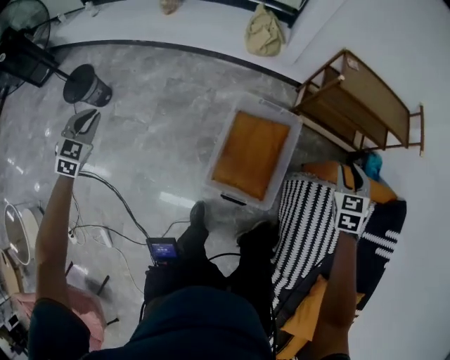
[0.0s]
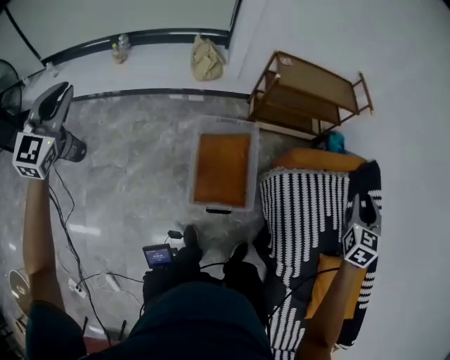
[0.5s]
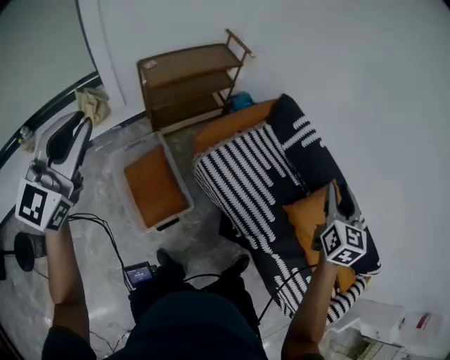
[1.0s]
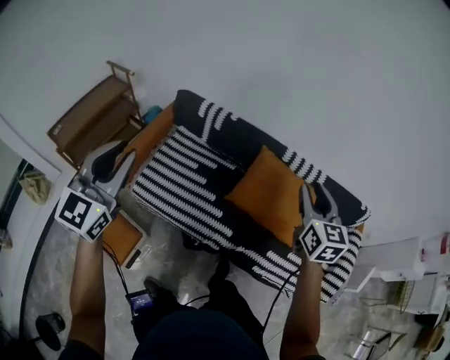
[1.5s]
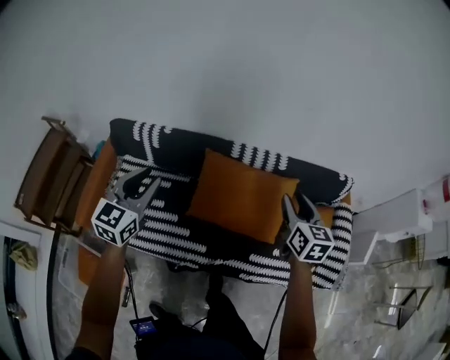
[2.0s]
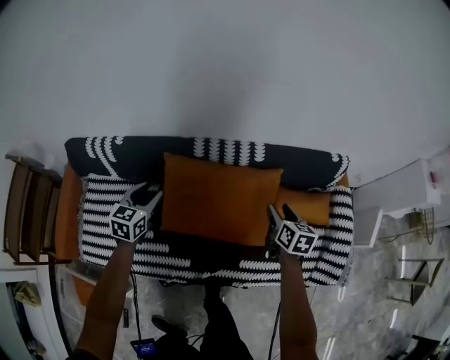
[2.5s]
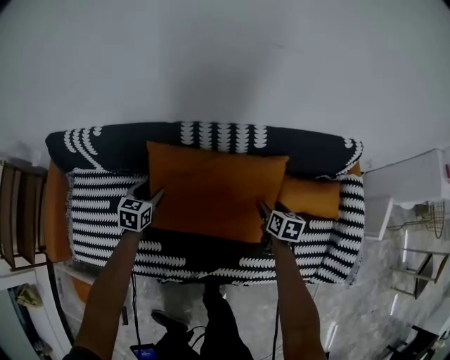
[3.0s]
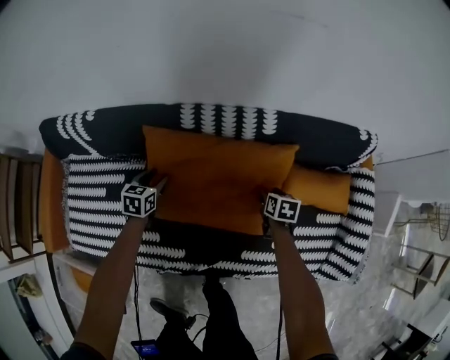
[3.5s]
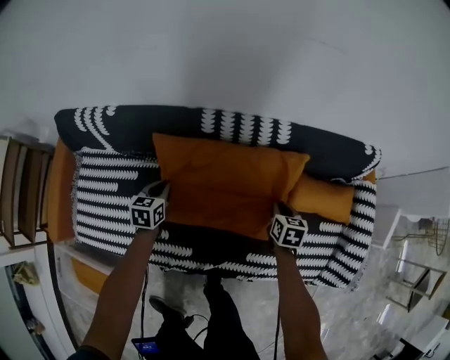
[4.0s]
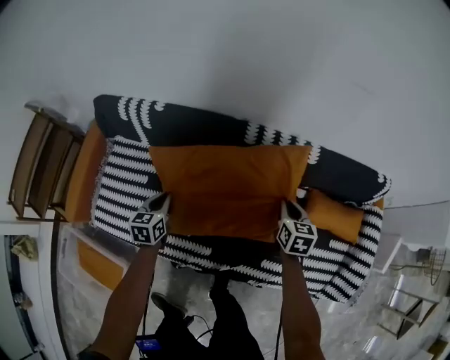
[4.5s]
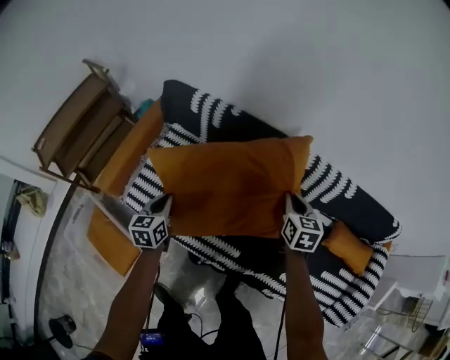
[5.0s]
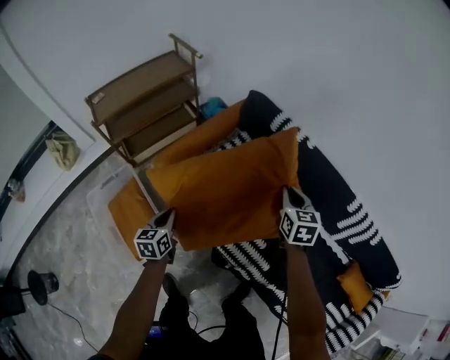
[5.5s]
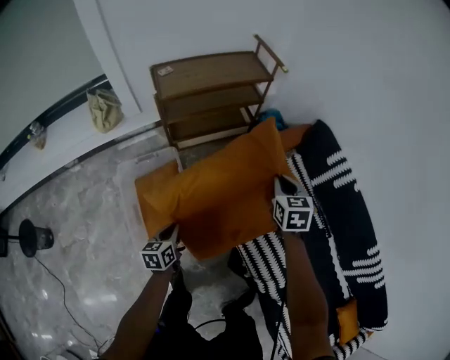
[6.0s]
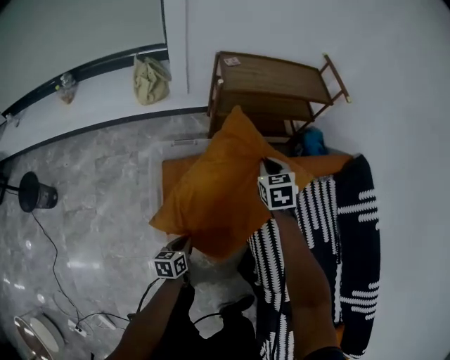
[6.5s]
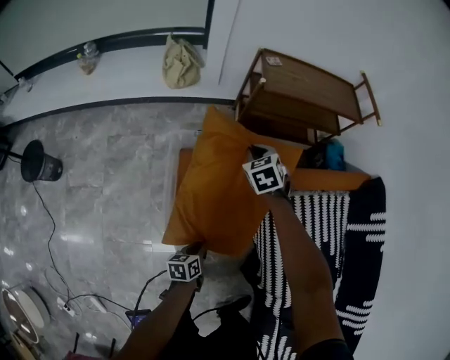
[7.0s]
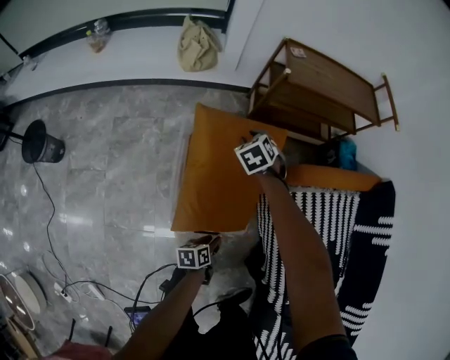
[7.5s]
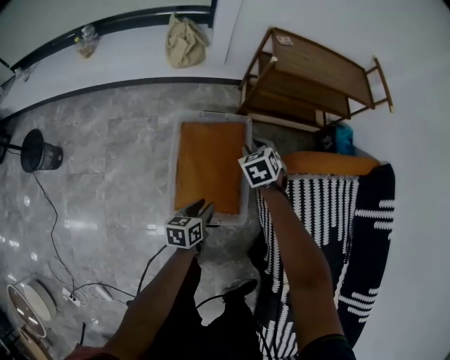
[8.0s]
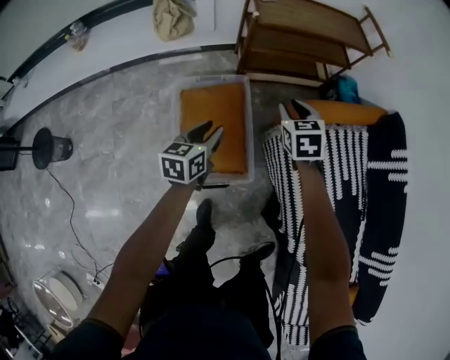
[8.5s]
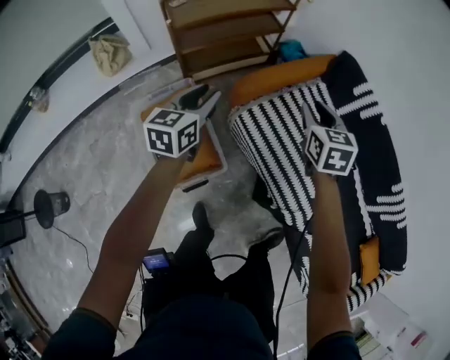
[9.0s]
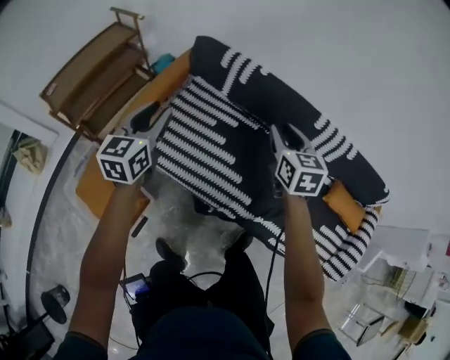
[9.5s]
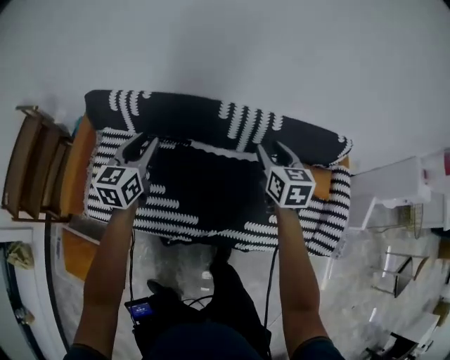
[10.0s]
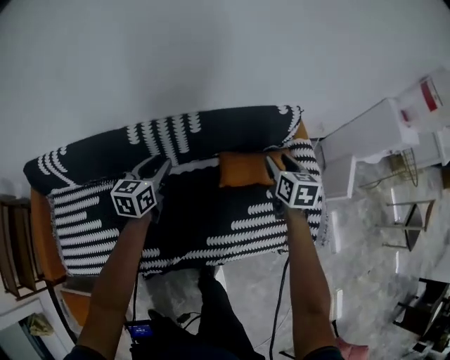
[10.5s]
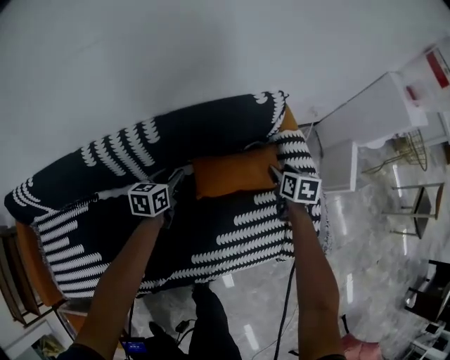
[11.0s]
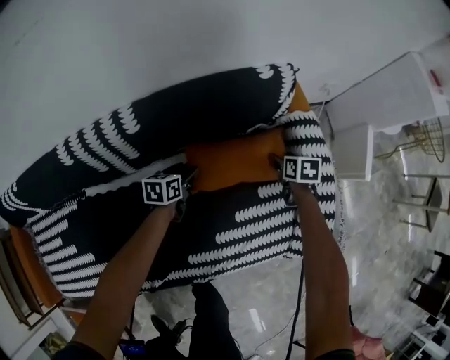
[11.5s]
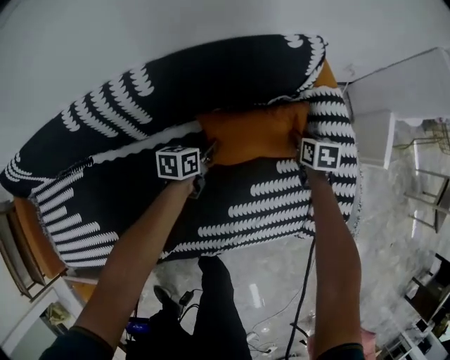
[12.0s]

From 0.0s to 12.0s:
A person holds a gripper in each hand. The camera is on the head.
From 0.0s to 2.0s: The left gripper moves roughly 1.5 m, and rotates roughly 100 degrees. Meanwhile the right gripper moves roughly 1 m, and rotates roughly 100 degrees.
From 2.0s to 4.0s: Both grippers move downward, some 40 cm. The left gripper tilts its fingers some 30 degrees downward, and closes; the right gripper rotates approximately 30 degrees, and closes up.
From 4.0s to 6.0s: Both grippers are carried roughly 90 cm. The right gripper swivels about 70 degrees, while the left gripper changes its angle by some 70 degrees.
From 6.0s to 8.0s: The right gripper goes approximately 50 cm to the left, and rotates approximately 50 degrees; the left gripper heads to the left and downward, covering roughly 20 cm, and opens.
From 8.0s to 10.0s: Both grippers are carried some 1 m. The left gripper turns by roughly 80 degrees. The right gripper swivels about 100 degrees.
From 10.0s to 12.0s: The pair of grippers is taken roughly 60 cm. The left gripper swivels some 50 degrees, and opens, then closes once more. The right gripper turns by about 40 degrees.

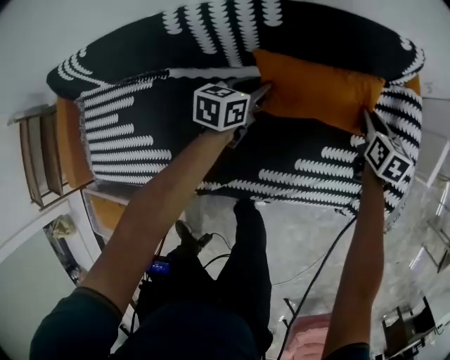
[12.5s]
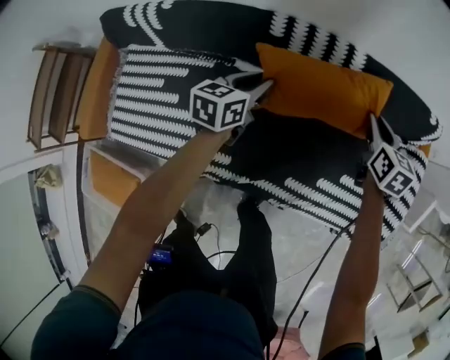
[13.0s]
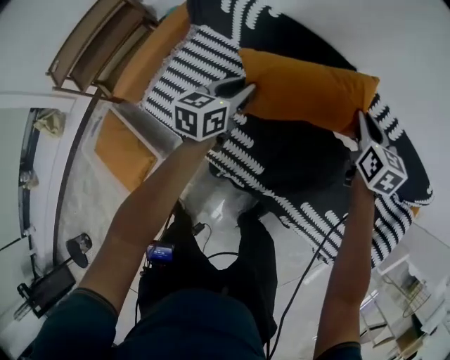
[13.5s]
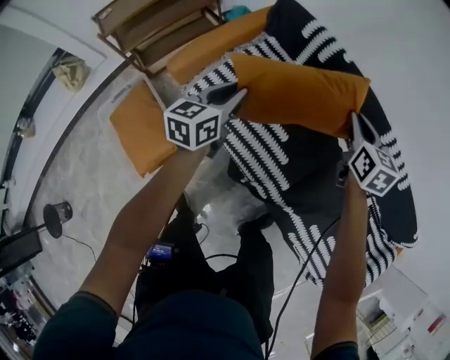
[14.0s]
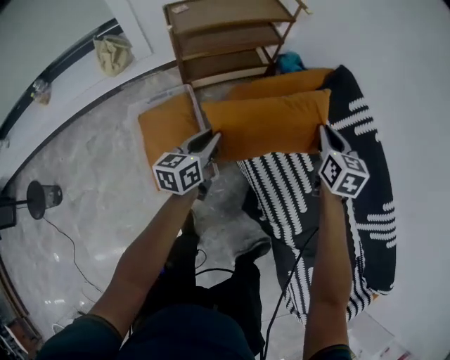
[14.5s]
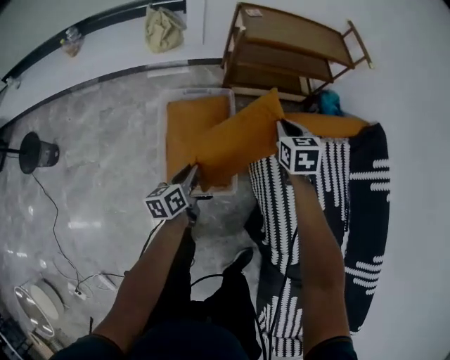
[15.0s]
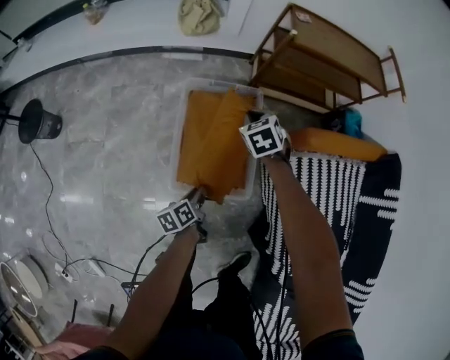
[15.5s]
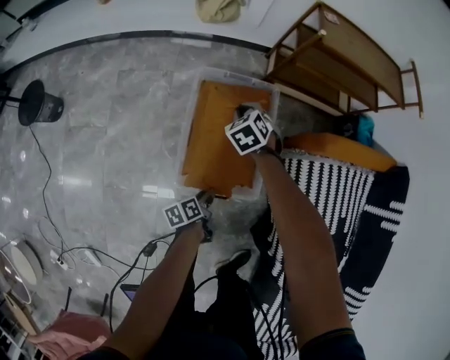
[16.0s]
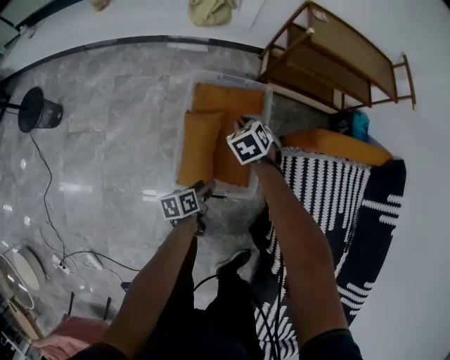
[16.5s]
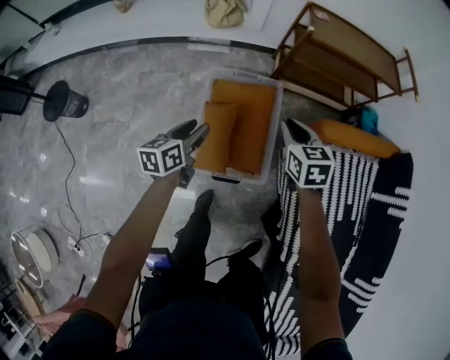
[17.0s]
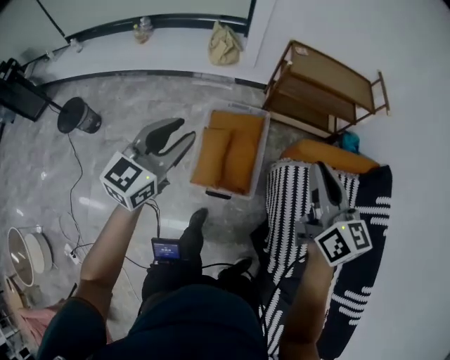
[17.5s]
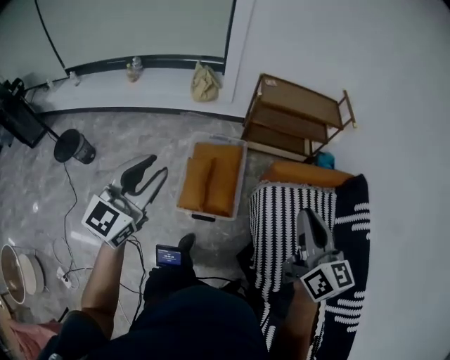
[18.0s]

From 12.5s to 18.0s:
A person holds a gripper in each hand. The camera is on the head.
From 12.5s to 14.5s: The pair of grippers is taken about 1 m. The right gripper changes its angle by about 70 degrees. The left gripper changes its angle by roughly 80 degrees.
From 14.5s to 16.0s: The right gripper moves approximately 70 cm, and rolls counterclockwise, seen from behind, by some 60 degrees; the left gripper travels downward by approximately 30 cm, and rolls counterclockwise, seen from behind, by approximately 60 degrees.
From 16.0s to 18.0s: The right gripper goes some 80 cm upward, backward and to the right, and points its fingers some 50 degrees further upward. Meanwhile the left gripper heads upward, covering approximately 70 cm, and rolls clockwise, seen from behind, by roughly 80 degrees.

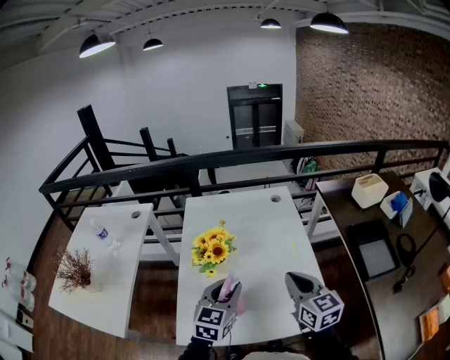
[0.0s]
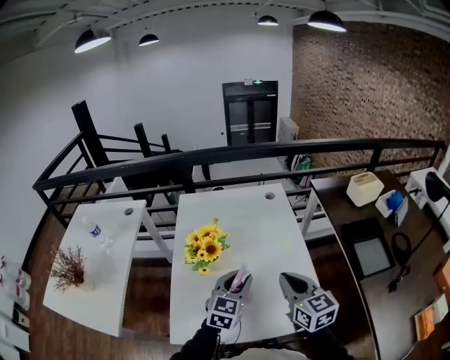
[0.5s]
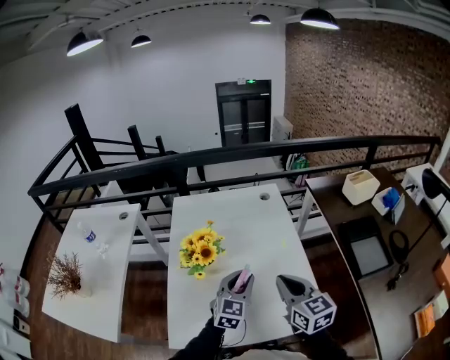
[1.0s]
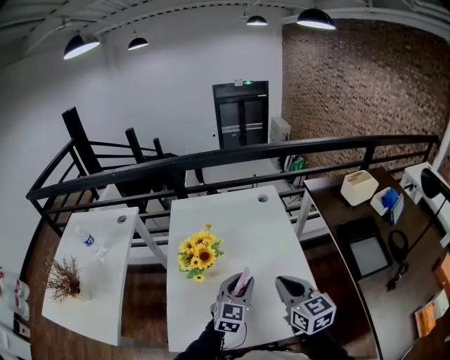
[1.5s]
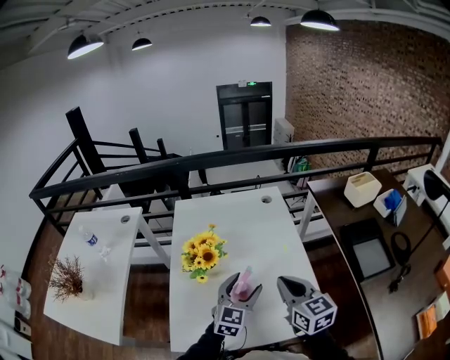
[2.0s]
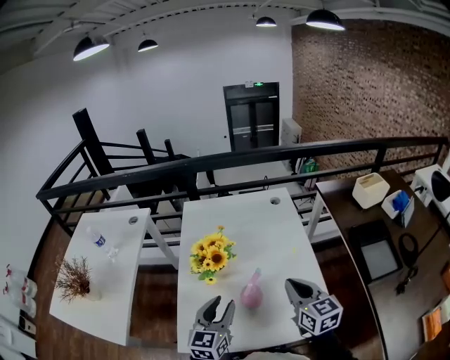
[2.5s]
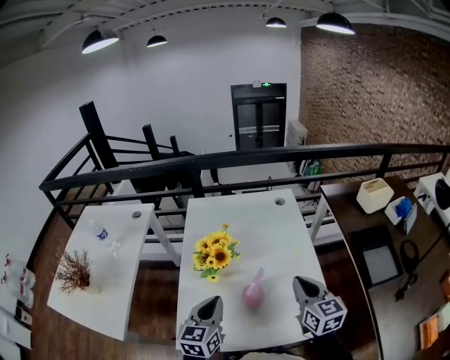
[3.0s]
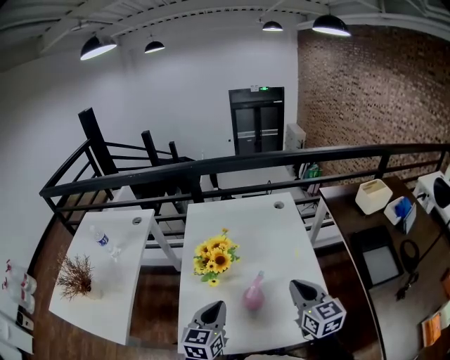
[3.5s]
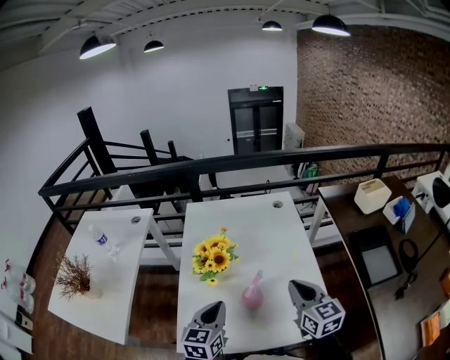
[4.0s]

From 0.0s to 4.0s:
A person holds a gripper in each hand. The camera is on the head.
From 0.0s to 2.0s: The left gripper is displaced to the right by roughly 5 cm, and opens up.
From 2.0s to 4.0s: The left gripper goes some 15 cm to the left and backward, swivels approximately 20 degrees, and closes.

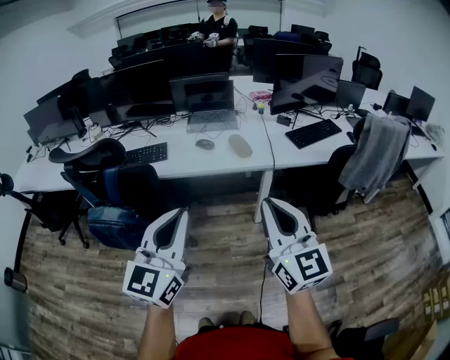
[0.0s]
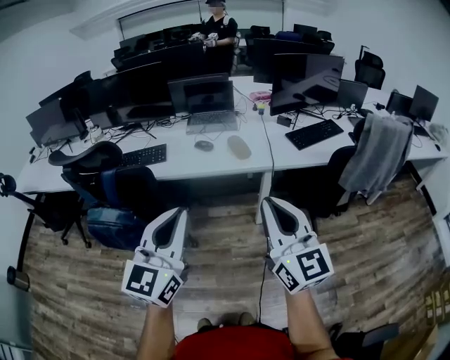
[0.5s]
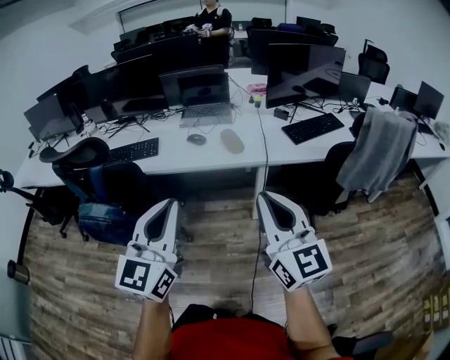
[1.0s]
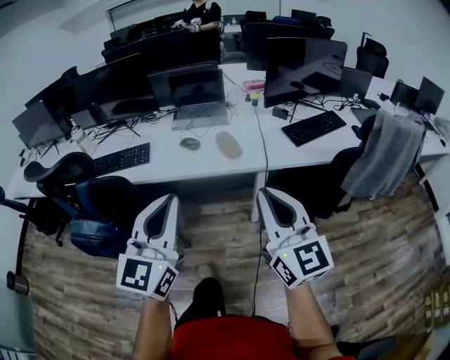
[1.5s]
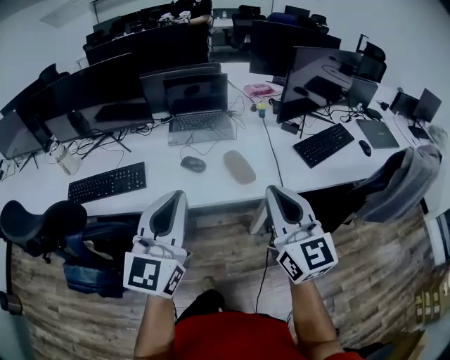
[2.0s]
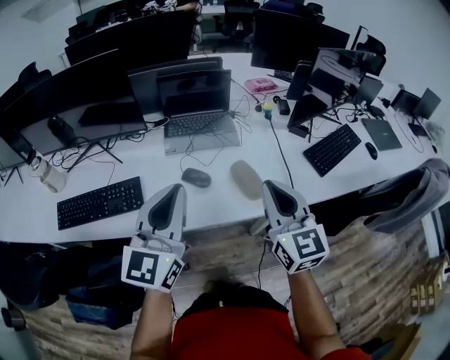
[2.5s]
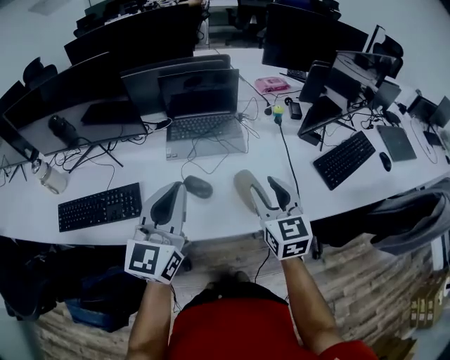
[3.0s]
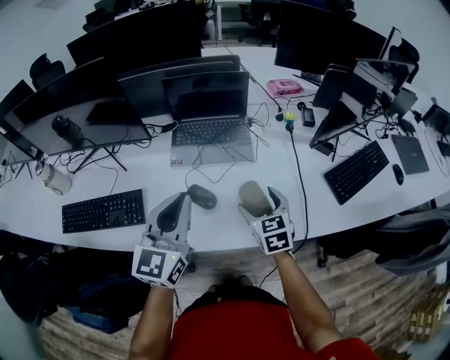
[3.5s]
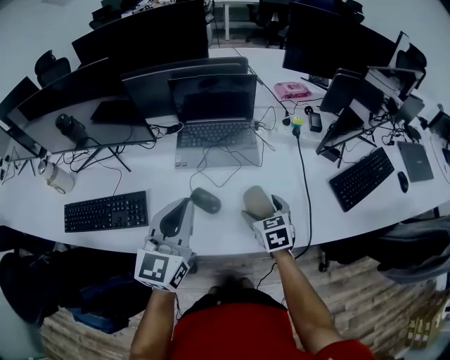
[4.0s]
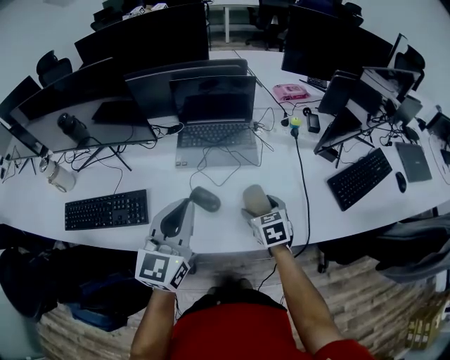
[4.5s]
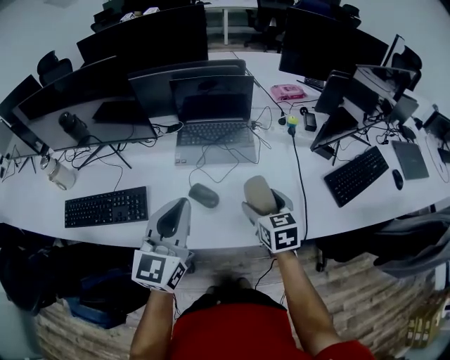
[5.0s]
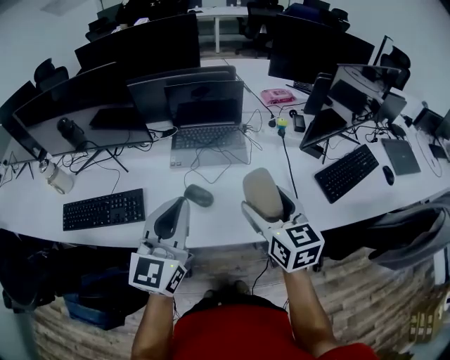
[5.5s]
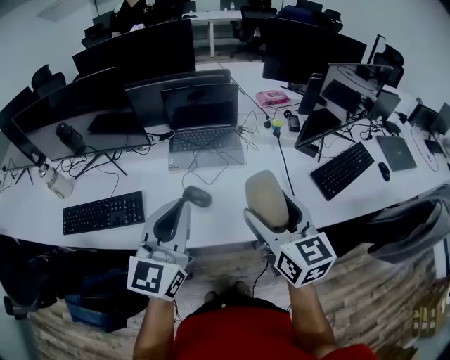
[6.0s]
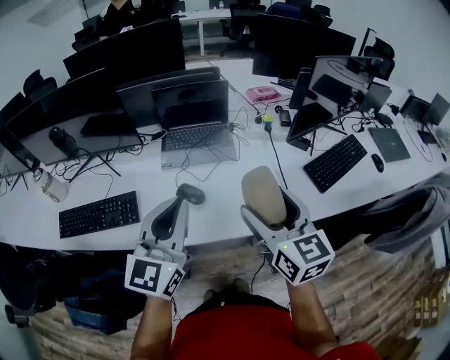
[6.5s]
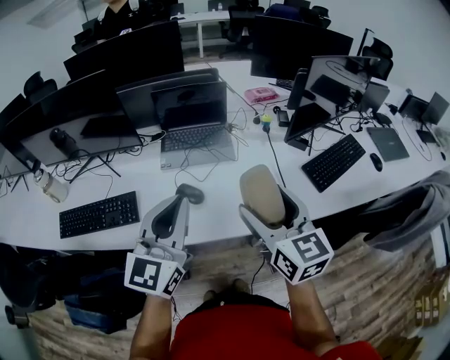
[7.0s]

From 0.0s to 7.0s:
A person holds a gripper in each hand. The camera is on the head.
From 0.0s to 2.0s: The grippers both shift forward by roughly 30 cm.
From 2.0s to 3.5s: Both grippers move forward and downward, roughly 30 cm. The right gripper tips its fingers downward by roughly 40 degrees, and opens its fingers.
From 3.5s to 5.0s: The right gripper goes downward and returns, some 5 cm each way.
From 5.0s to 7.0s: The right gripper shifts some 20 cm upward and backward, and swivels some 20 degrees, while the left gripper moves upward and backward, about 10 cm.
